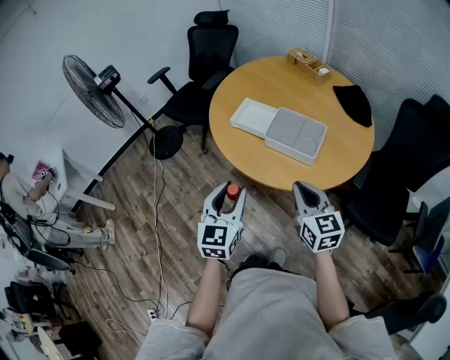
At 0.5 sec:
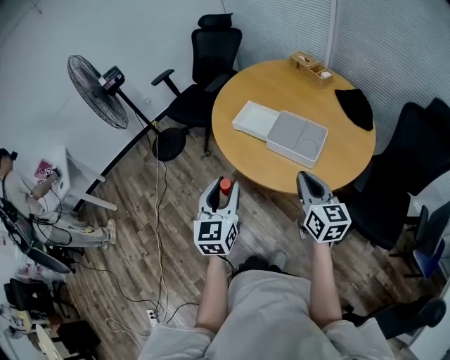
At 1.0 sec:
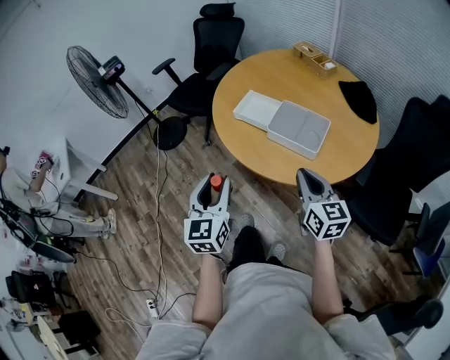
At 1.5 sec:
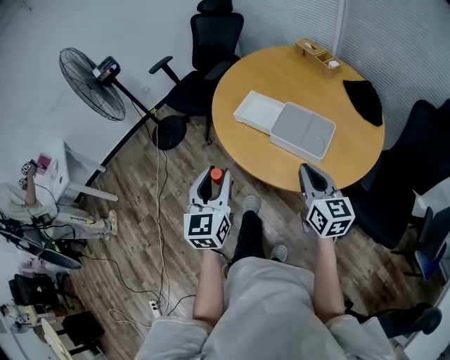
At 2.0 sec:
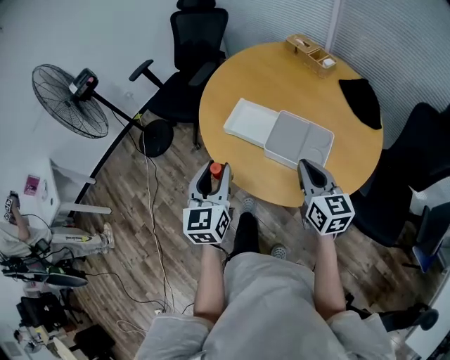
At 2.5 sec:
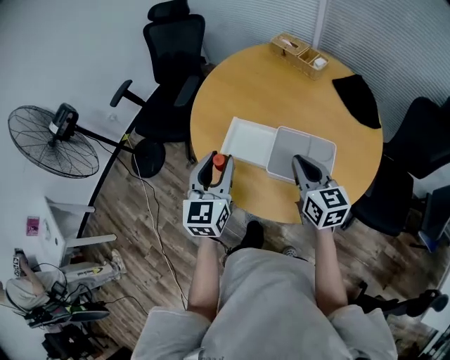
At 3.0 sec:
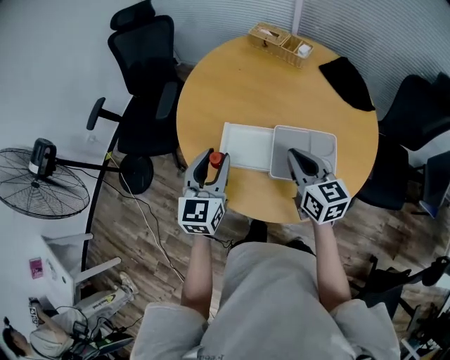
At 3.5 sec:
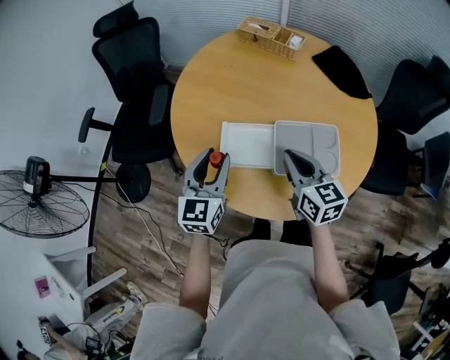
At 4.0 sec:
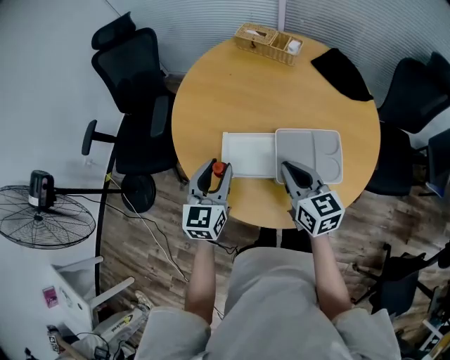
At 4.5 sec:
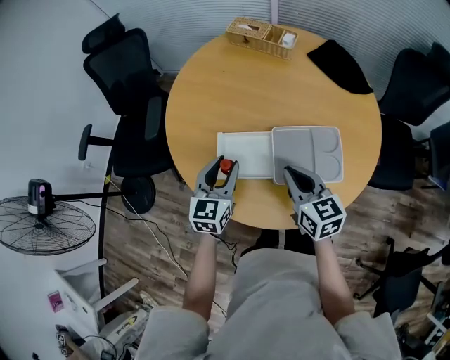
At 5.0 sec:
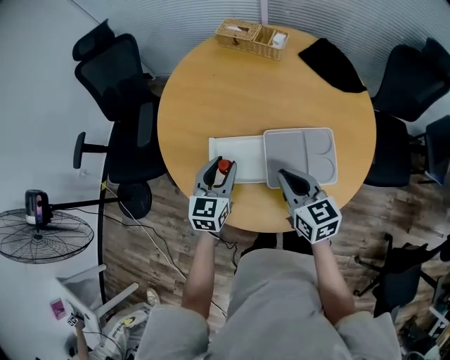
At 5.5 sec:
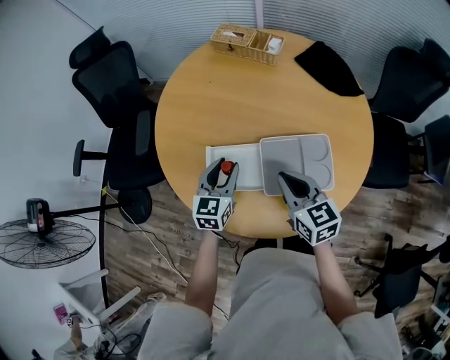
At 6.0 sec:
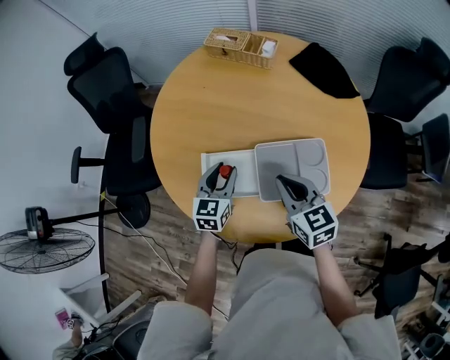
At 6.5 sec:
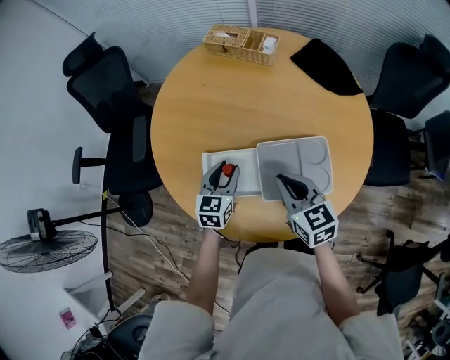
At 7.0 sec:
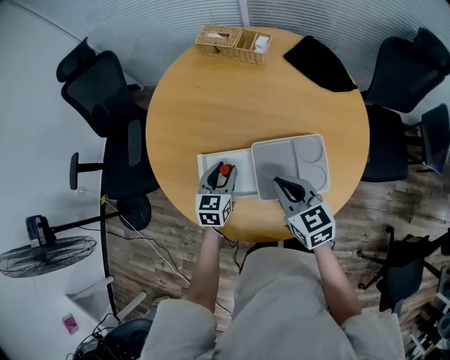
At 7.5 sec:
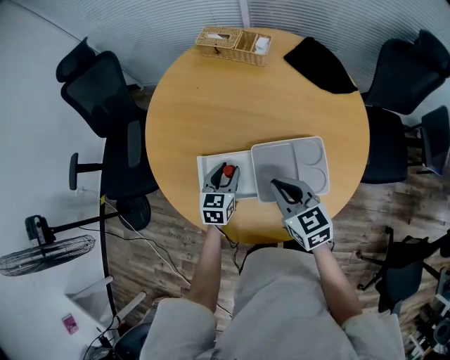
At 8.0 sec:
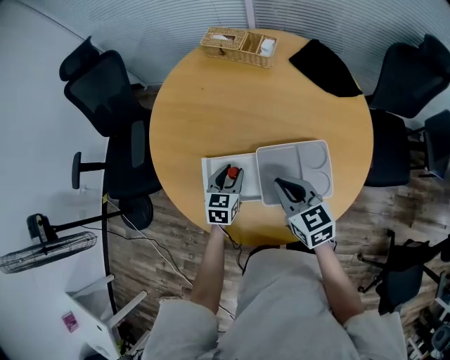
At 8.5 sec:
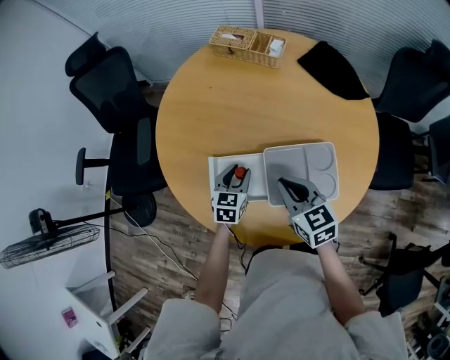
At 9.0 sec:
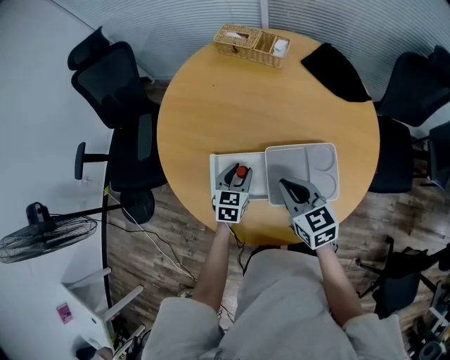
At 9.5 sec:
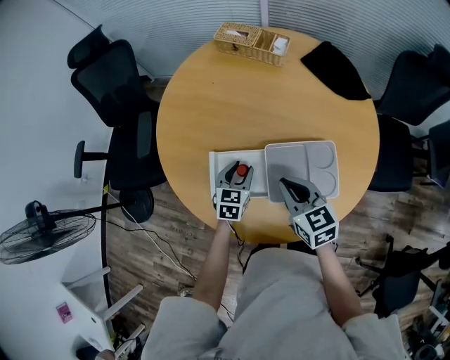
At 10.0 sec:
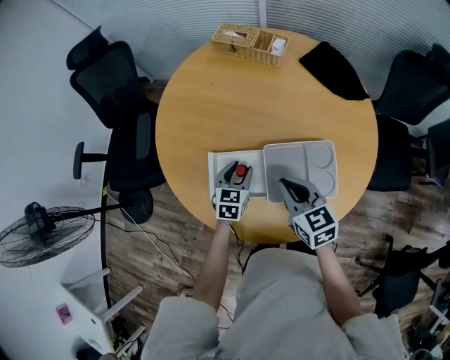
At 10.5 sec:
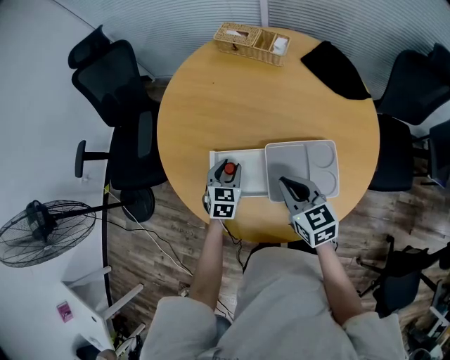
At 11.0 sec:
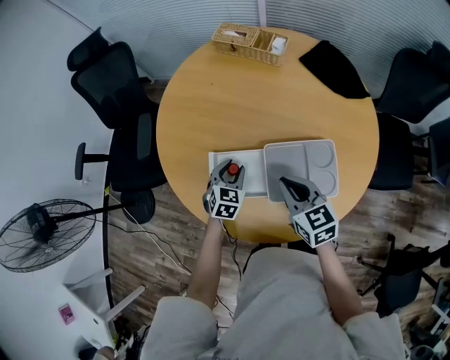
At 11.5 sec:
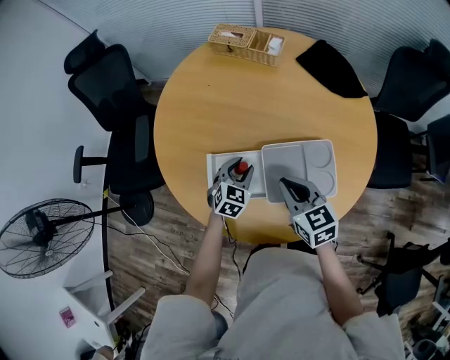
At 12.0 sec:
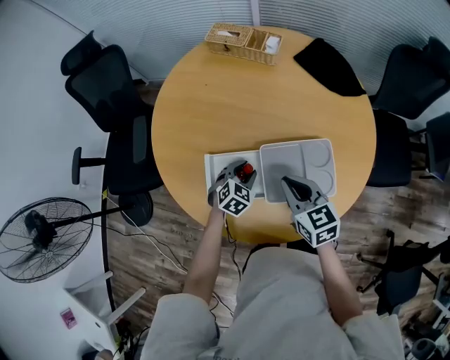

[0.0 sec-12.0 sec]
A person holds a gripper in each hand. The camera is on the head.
0.0 sec to 2.0 sec: The grippers both shift forward by approximately 15 cm.
2.0 sec to 4.0 sec: The right gripper goes some 15 cm forward and to the left, while the left gripper goes about 25 cm forward, and turns by roughly 30 degrees.
4.0 sec to 6.0 sec: The left gripper is displaced downward, to the right and forward by some 15 cm. The right gripper shifts by approximately 5 cm.
6.0 sec to 8.0 sec: The left gripper shifts about 5 cm downward.
8.0 sec to 10.0 sec: The two grippers keep their place.
10.0 sec to 12.0 sec: The left gripper moves roughly 5 cm, and swivels roughly 30 degrees.

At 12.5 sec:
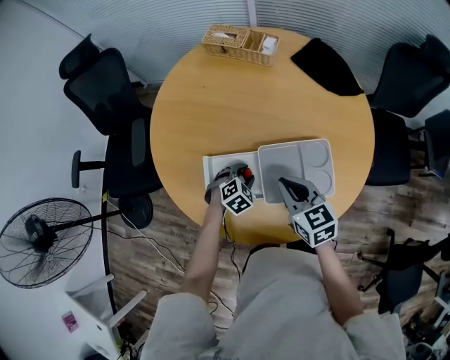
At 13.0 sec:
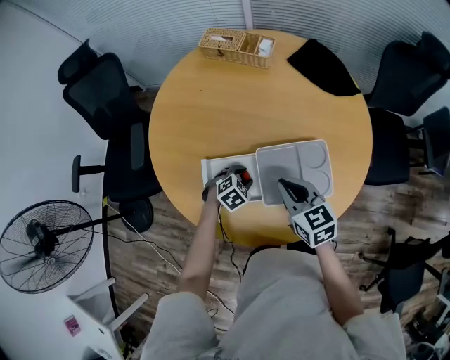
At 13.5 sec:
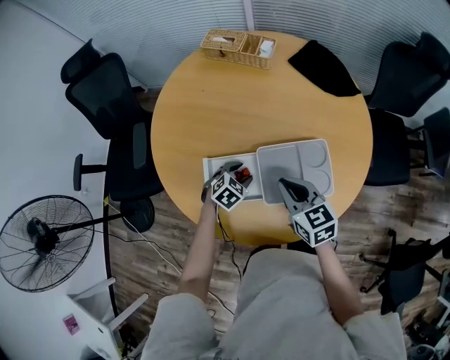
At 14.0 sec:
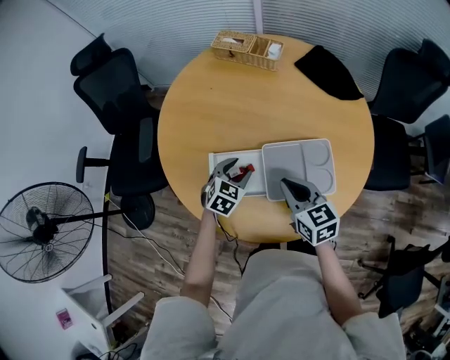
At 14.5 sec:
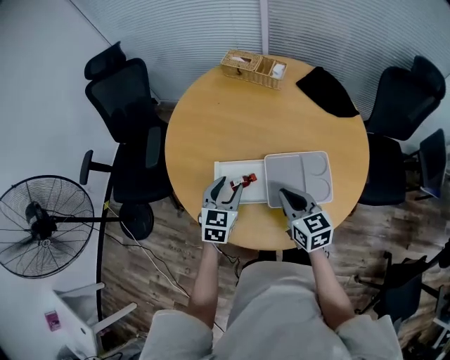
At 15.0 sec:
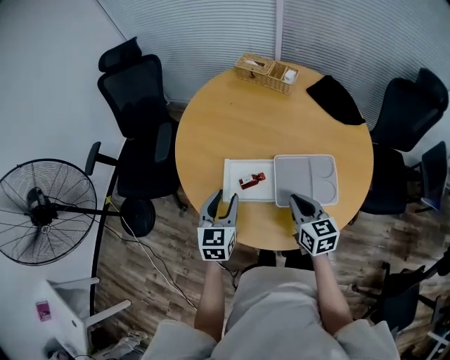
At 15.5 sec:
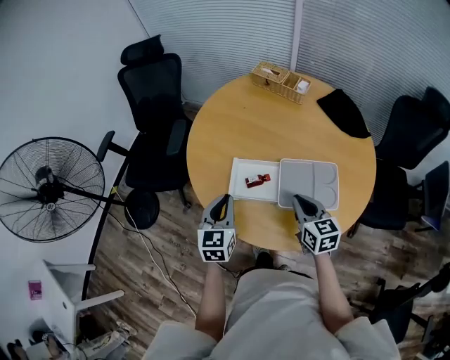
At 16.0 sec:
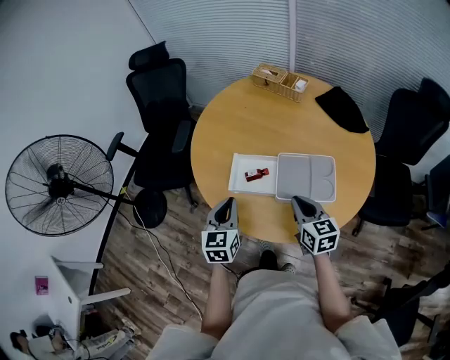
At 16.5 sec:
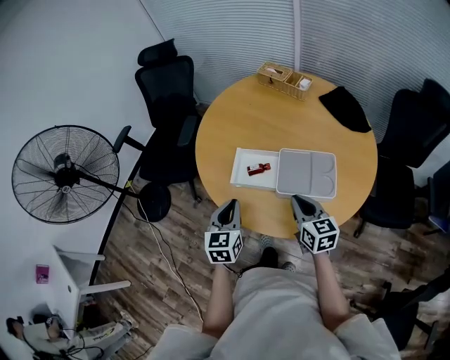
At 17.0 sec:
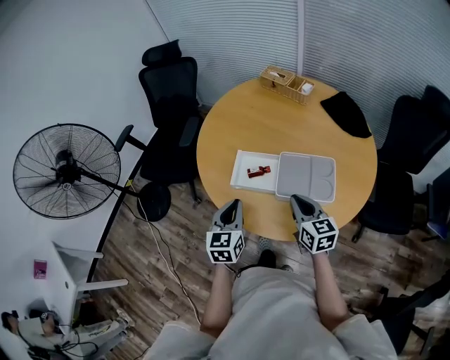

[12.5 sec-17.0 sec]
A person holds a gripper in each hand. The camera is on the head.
12.5 sec to 14.5 sec: The left gripper travels upward and to the left by some 20 cm, and angles its fingers upward, by some 30 degrees.
14.5 sec to 17.0 sec: The right gripper is displaced backward by some 10 cm, while the left gripper heads backward and upward, covering about 15 cm, swivels about 30 degrees, and closes up.

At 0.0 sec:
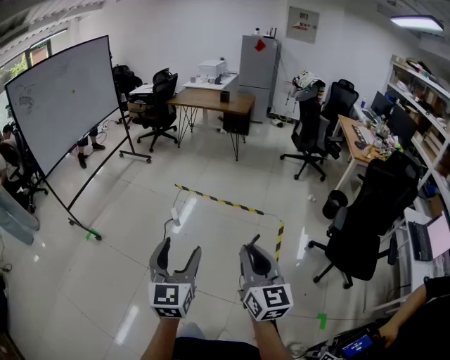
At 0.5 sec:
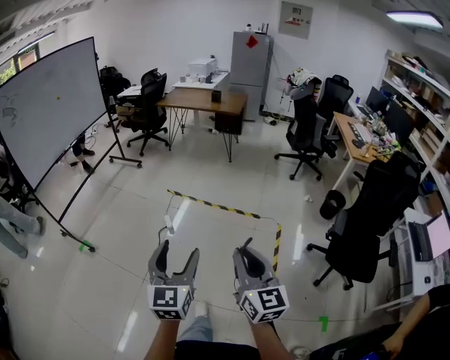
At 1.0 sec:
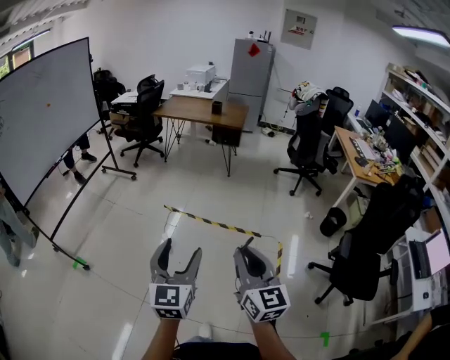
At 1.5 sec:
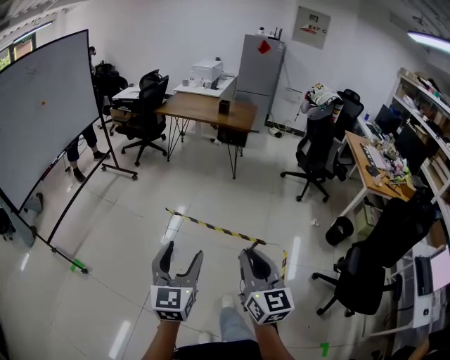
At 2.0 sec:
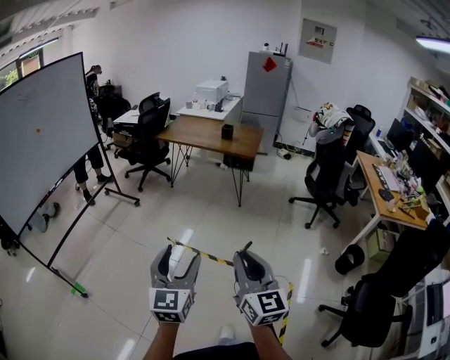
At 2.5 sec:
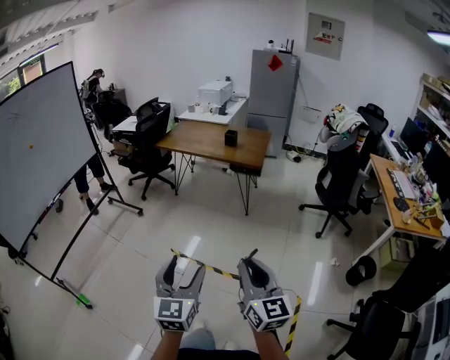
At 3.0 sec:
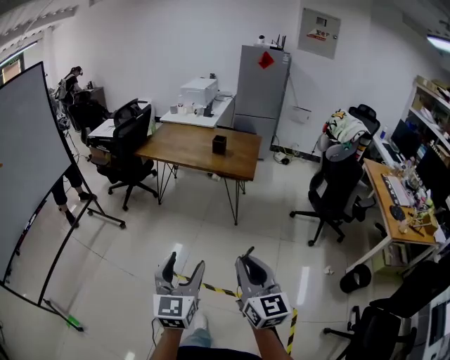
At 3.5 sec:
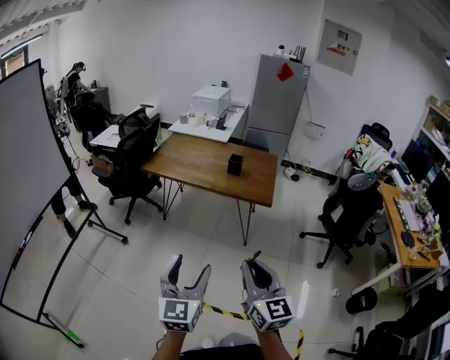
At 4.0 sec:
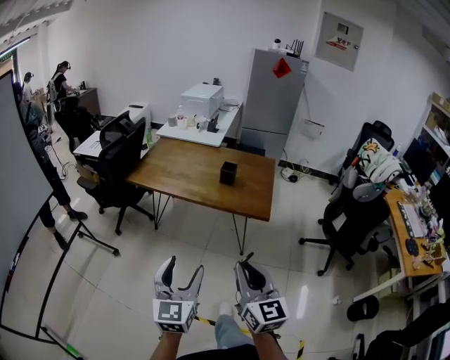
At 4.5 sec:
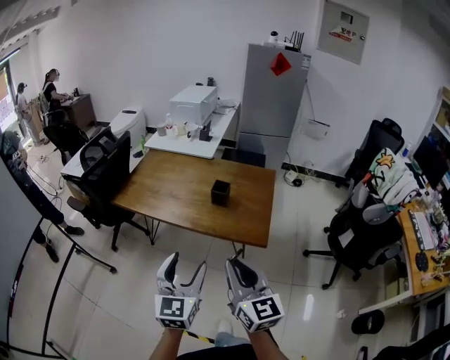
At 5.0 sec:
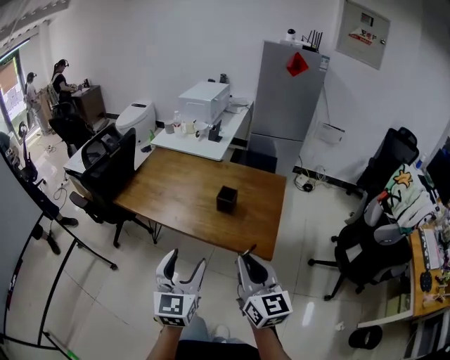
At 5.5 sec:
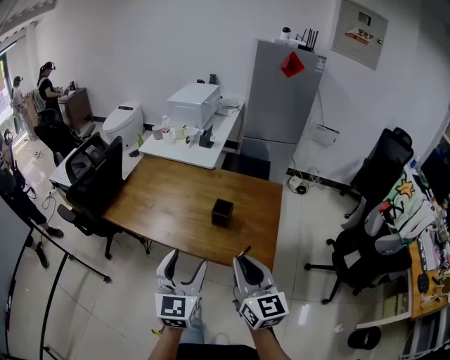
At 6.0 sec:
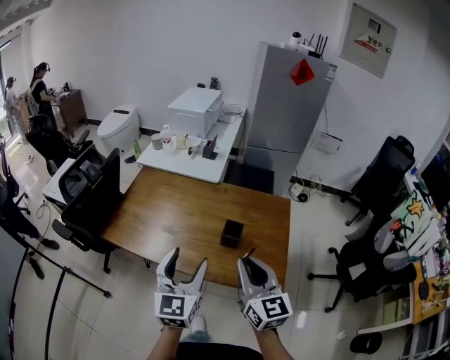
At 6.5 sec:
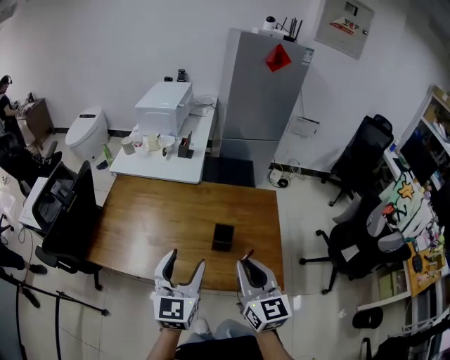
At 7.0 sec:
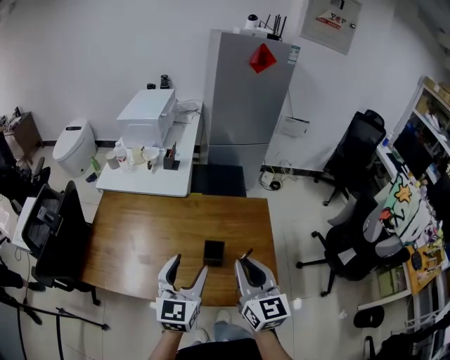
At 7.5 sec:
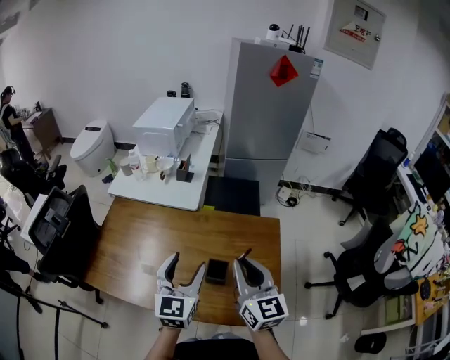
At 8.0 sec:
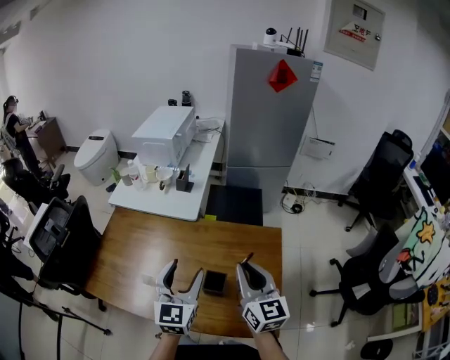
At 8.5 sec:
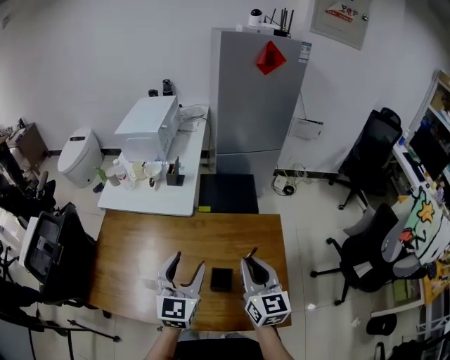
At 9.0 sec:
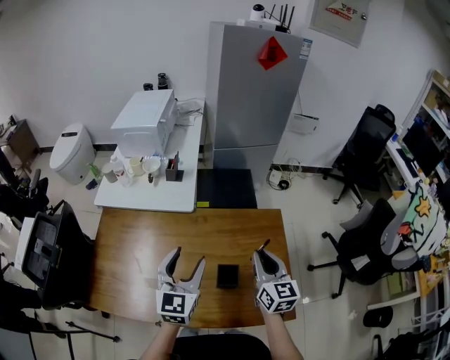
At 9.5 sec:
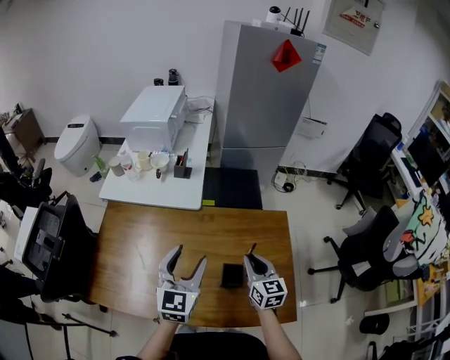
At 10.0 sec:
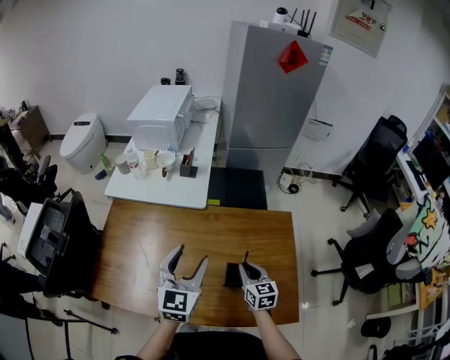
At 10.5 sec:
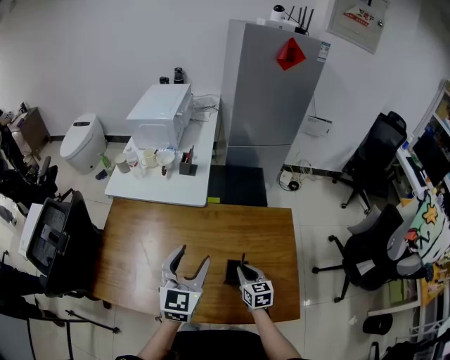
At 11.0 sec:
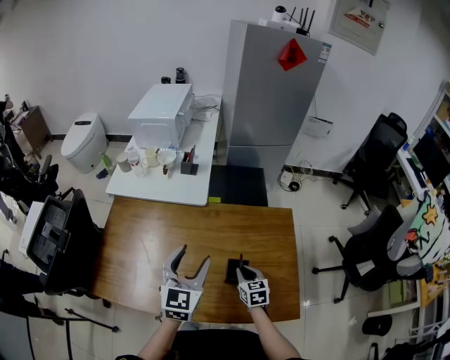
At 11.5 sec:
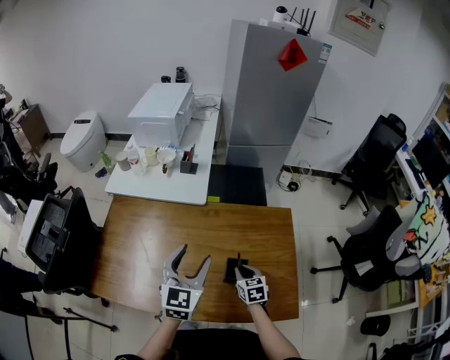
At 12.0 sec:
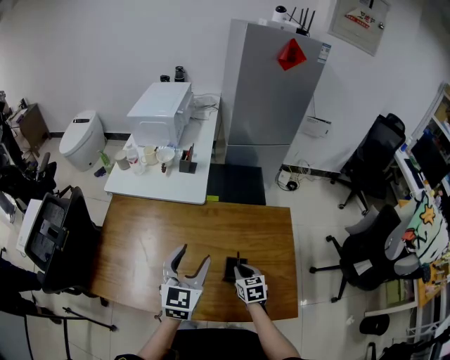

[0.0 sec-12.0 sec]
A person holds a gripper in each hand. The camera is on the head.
0.0 sec to 2.0 sec: The two grippers travel together, forward, approximately 60 cm.
2.0 sec to 4.0 sec: Both grippers are carried forward, approximately 60 cm.
4.0 sec to 6.0 sec: The pair of grippers is taken forward, approximately 50 cm.
6.0 sec to 8.0 sec: The grippers both shift forward by about 25 cm.
8.0 sec to 10.0 sec: The right gripper goes roughly 25 cm downward, and changes its angle by roughly 20 degrees. Meanwhile the left gripper goes some 10 cm to the left.
10.0 sec to 12.0 sec: The right gripper moves downward, some 5 cm.
